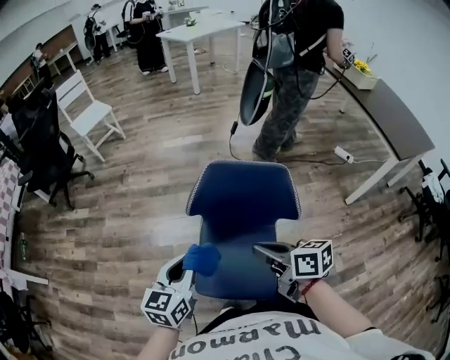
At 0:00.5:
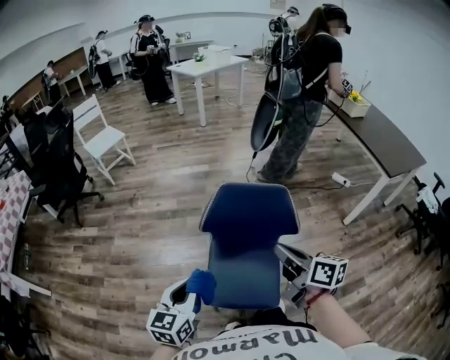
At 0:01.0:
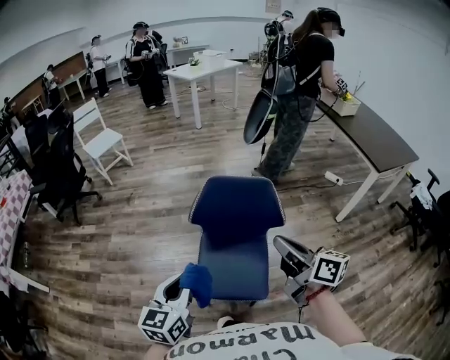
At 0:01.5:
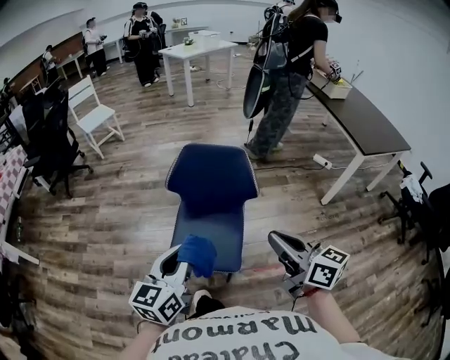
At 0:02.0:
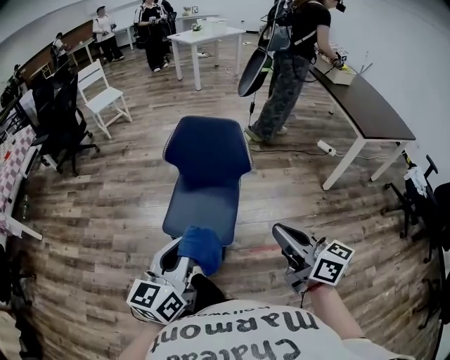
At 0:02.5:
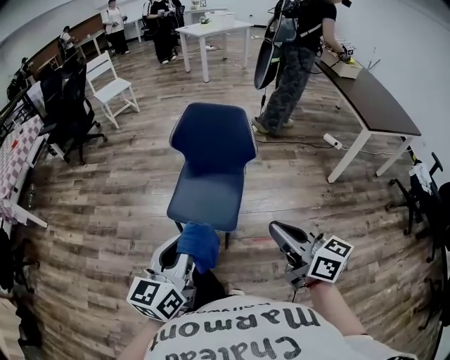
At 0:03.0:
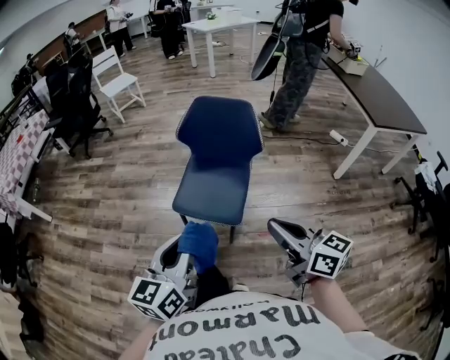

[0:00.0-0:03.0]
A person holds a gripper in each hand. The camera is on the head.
0:00.0 to 0:01.5: Both grippers travel together backward, upward and to the right, approximately 30 cm. The right gripper changes its angle by about 30 degrees.
0:01.5 to 0:03.0: The two grippers go roughly 15 cm backward.

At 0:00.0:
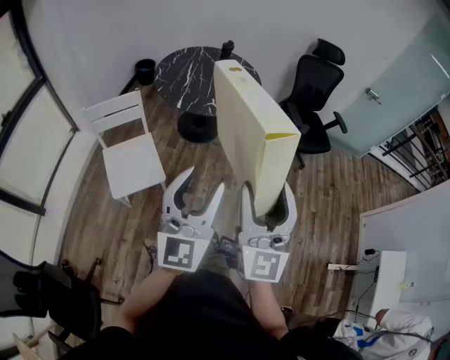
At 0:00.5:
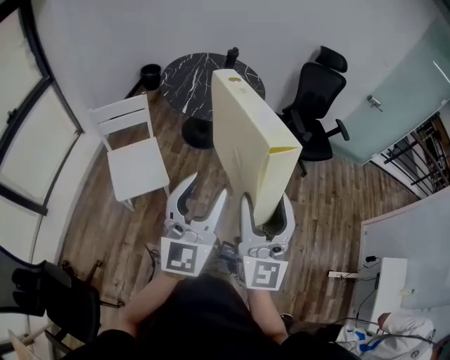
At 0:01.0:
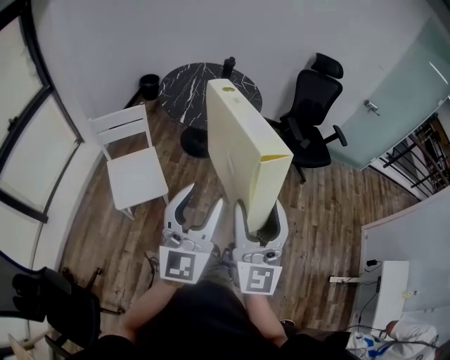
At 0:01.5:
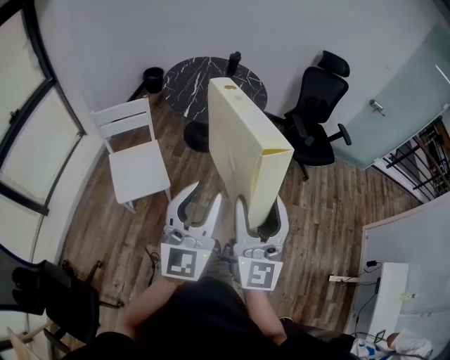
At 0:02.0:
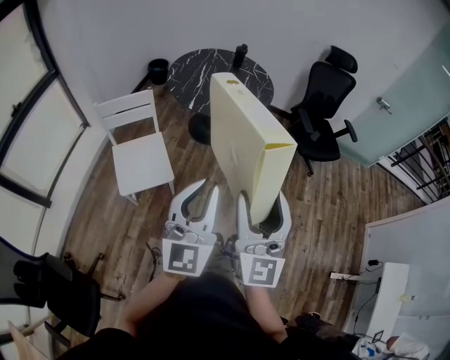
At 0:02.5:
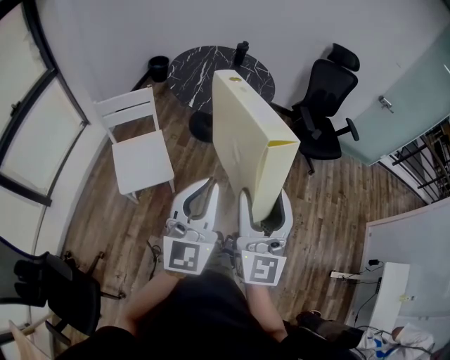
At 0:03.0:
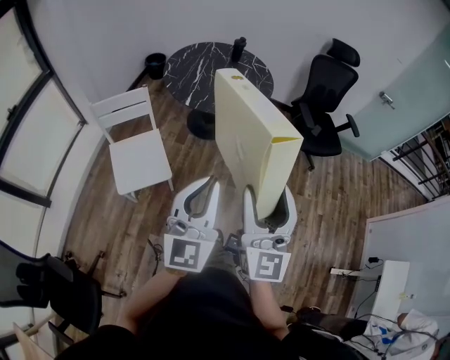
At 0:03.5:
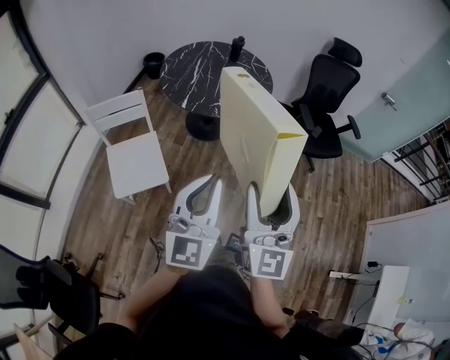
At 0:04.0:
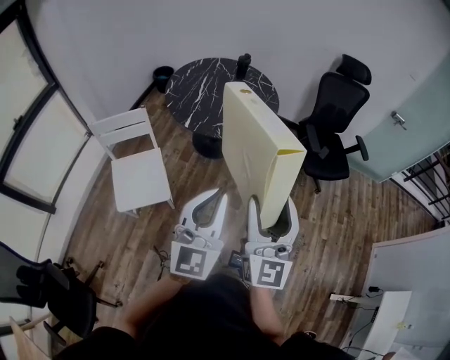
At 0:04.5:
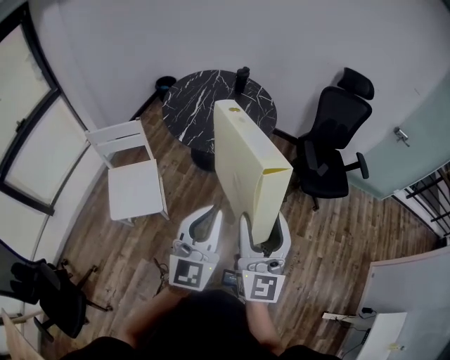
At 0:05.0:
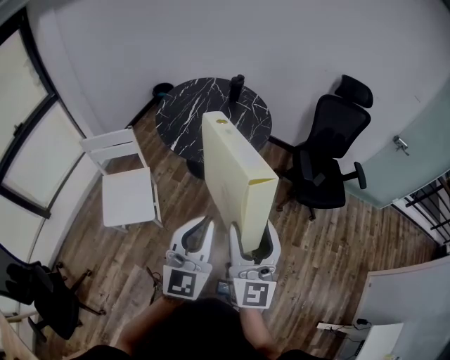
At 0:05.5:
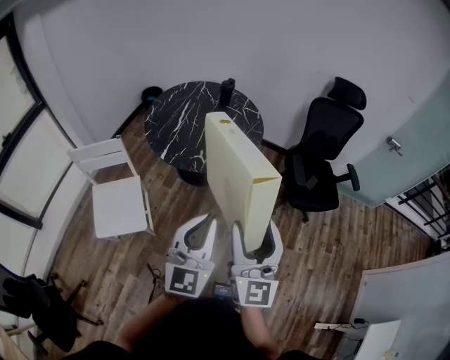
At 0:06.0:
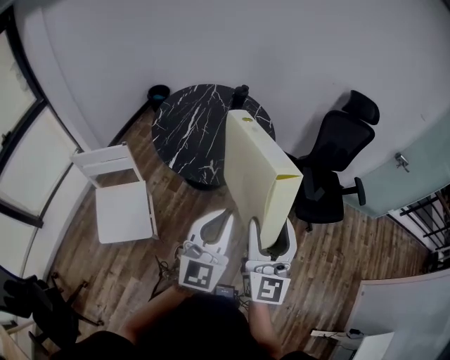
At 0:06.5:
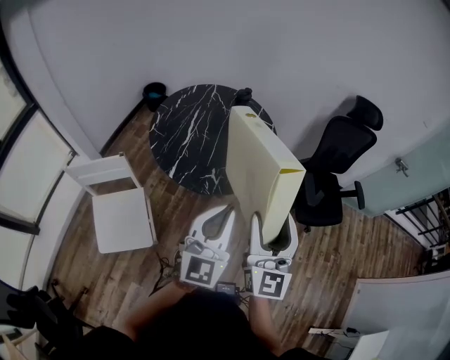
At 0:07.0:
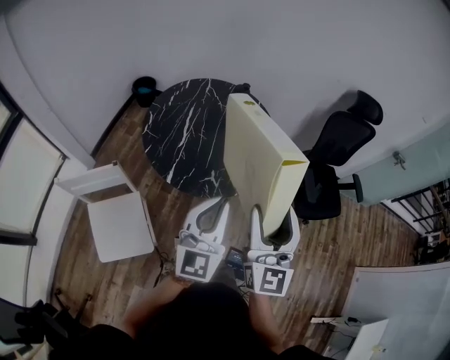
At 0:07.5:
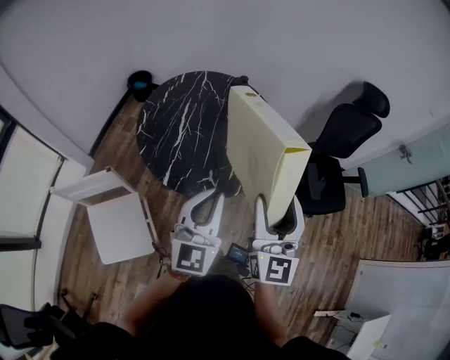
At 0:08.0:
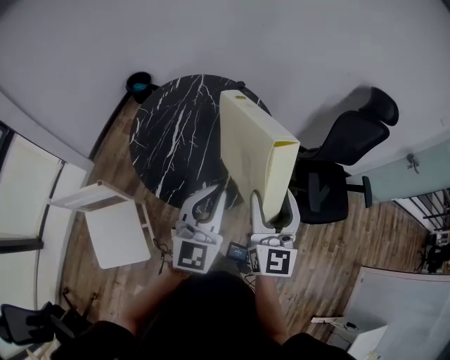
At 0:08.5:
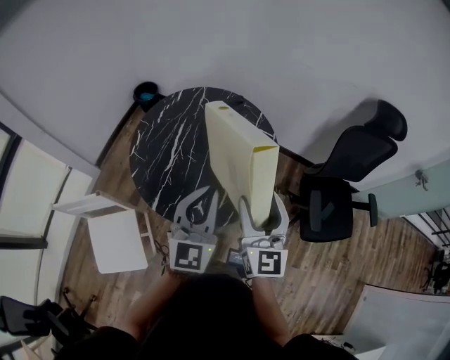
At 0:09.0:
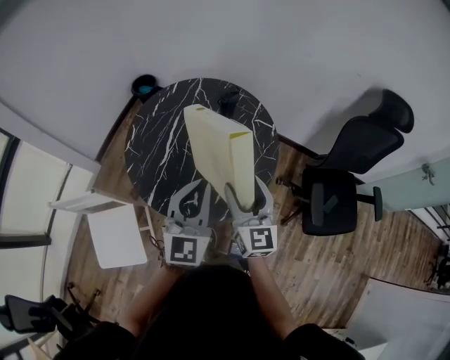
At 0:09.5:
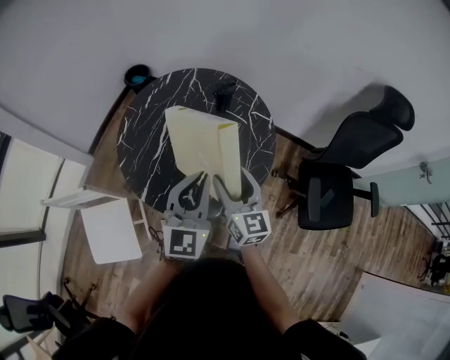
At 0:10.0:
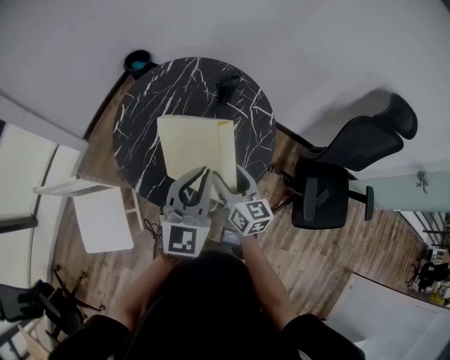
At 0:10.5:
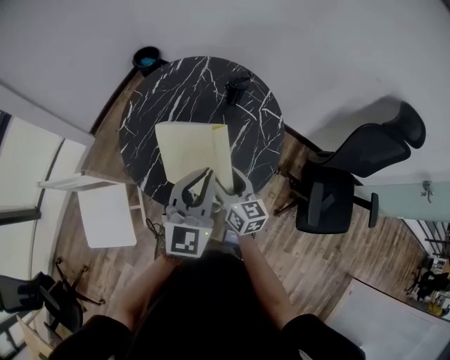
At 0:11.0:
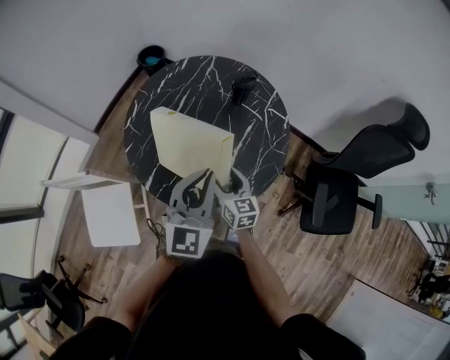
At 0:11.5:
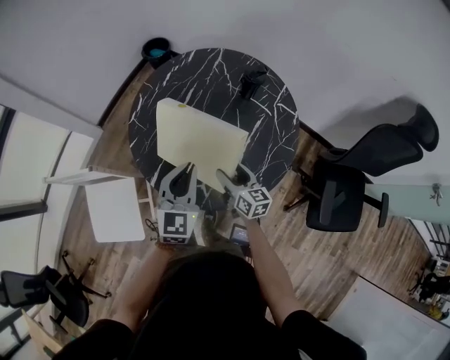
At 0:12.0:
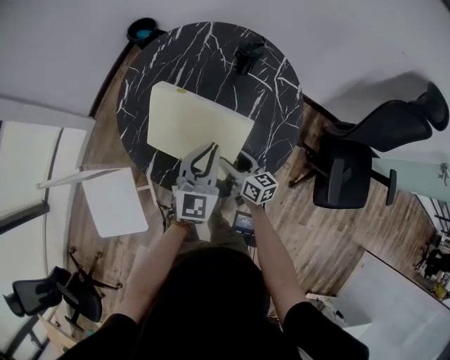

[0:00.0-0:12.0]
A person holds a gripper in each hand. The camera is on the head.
0:00.0 to 0:02.0: The left gripper closes.
0:02.0 to 0:04.0: The grippers both shift forward and to the right by roughly 20 cm.
0:04.0 to 0:06.0: The two grippers go about 20 cm forward.
0:06.0 to 0:08.0: Both grippers travel together forward, some 35 cm.
0:08.0 to 0:10.0: The left gripper moves forward, downward and to the right, about 15 cm; the right gripper shifts about 25 cm downward and forward, and swivels approximately 40 degrees.
0:10.0 to 0:12.0: Both grippers travel together downward, some 20 cm.

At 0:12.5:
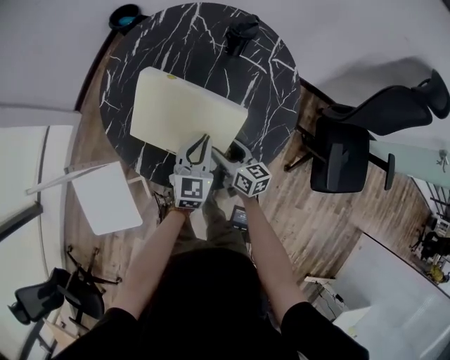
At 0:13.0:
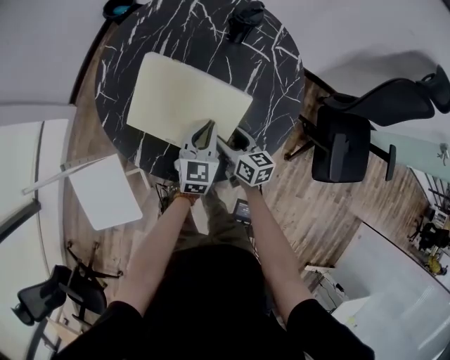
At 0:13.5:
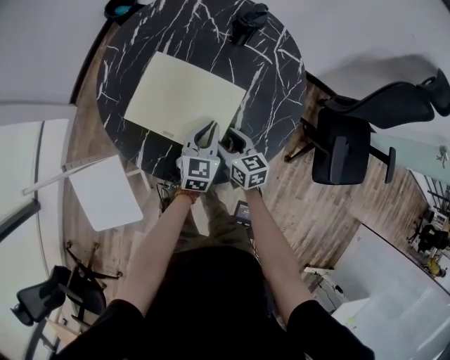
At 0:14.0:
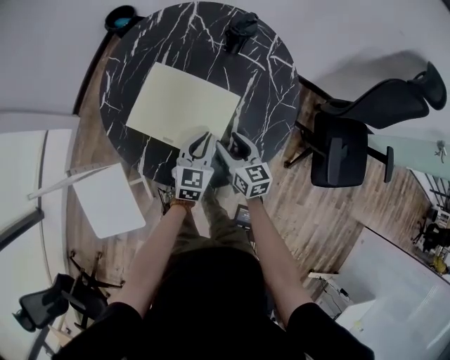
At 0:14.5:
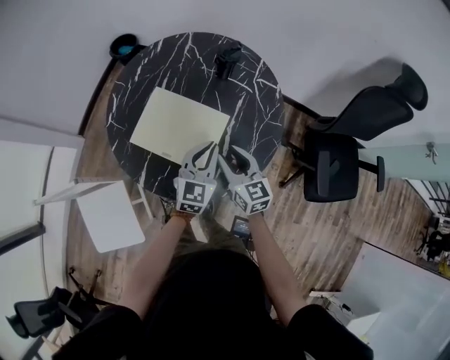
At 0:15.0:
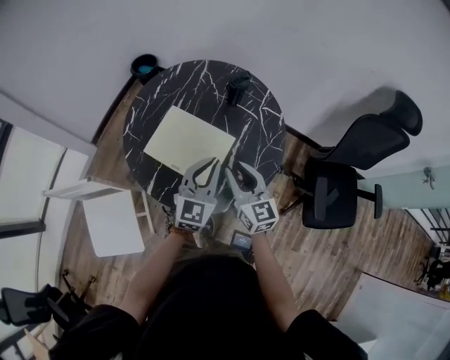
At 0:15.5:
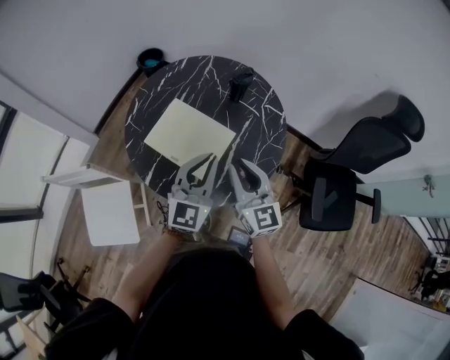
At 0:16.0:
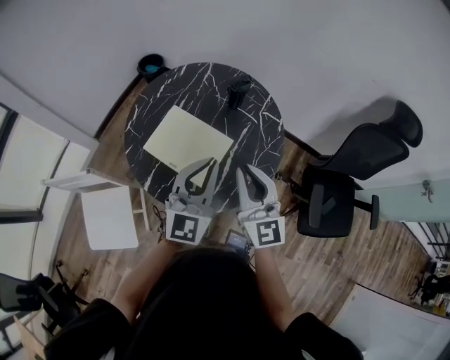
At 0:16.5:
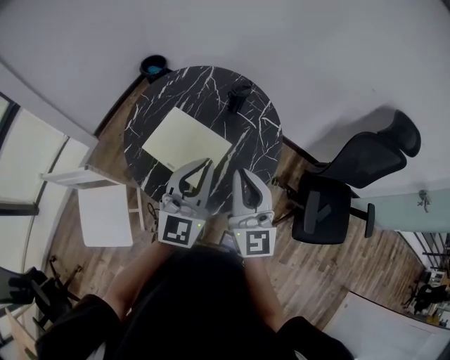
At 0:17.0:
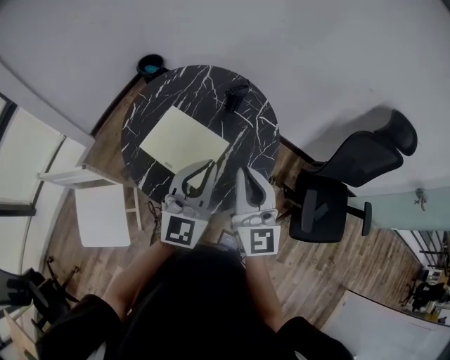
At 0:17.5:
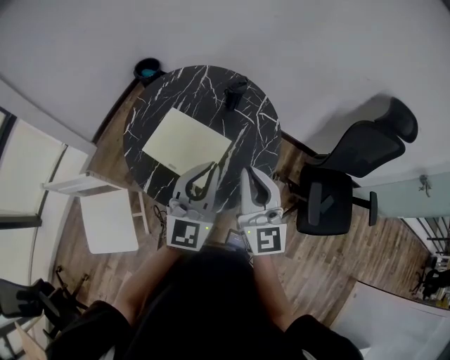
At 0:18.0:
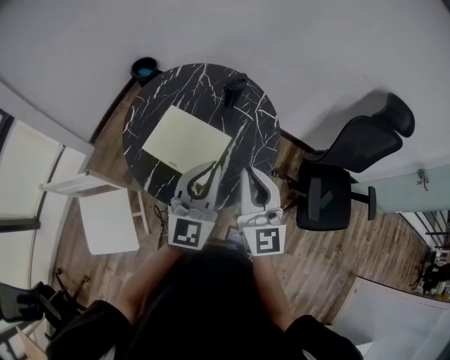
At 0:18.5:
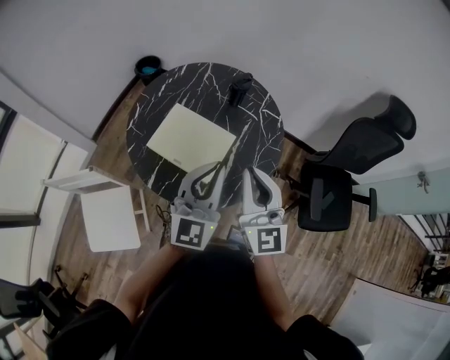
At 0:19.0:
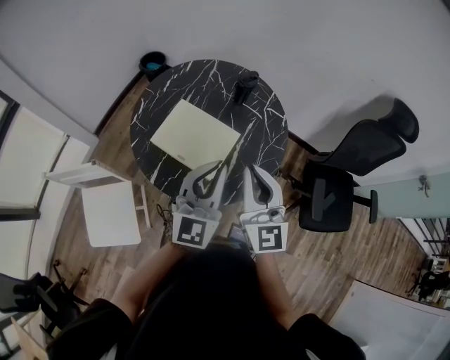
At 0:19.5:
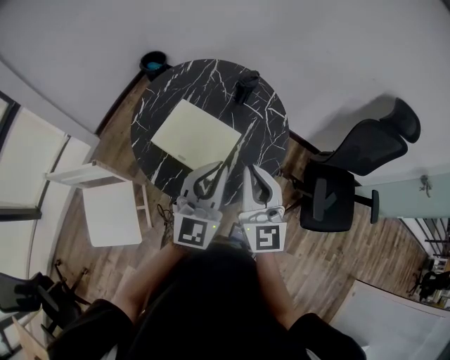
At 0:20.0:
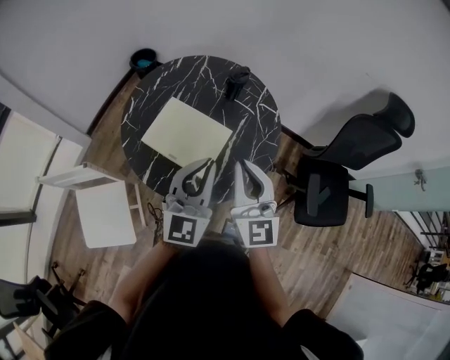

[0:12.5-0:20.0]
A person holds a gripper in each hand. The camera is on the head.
0:12.5 to 0:14.5: The right gripper moves upward, approximately 15 cm, swivels about 30 degrees, and closes up; the left gripper heads upward, covering roughly 10 cm.
0:14.5 to 0:16.5: Both grippers travel together upward, some 25 cm. The right gripper changes its angle by approximately 30 degrees, and closes its fingers; the left gripper changes its angle by some 20 degrees.
0:16.5 to 0:20.0: The grippers move only a little.

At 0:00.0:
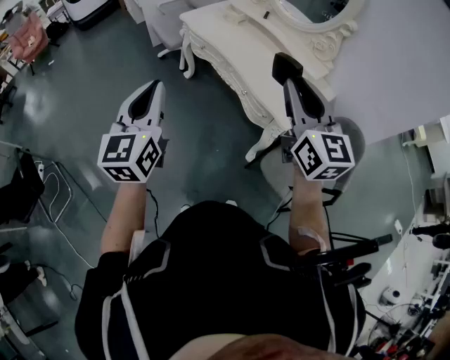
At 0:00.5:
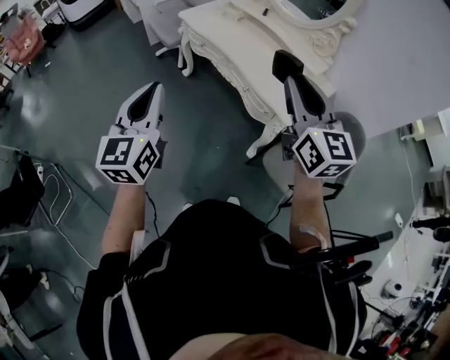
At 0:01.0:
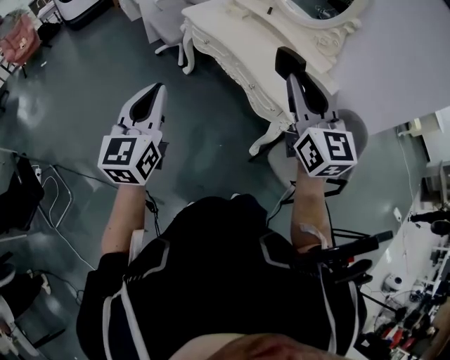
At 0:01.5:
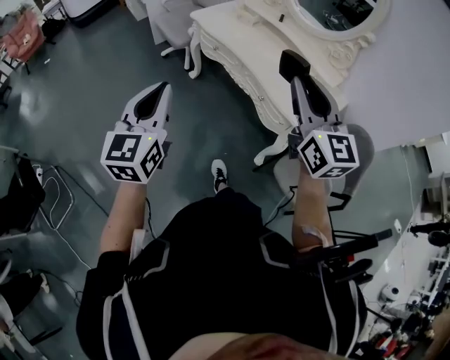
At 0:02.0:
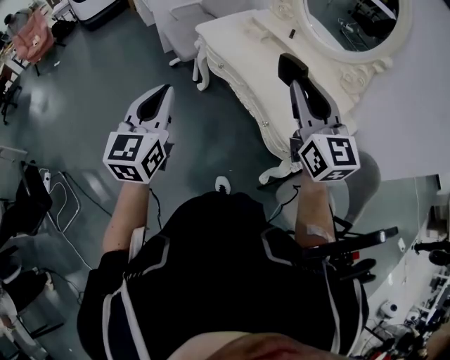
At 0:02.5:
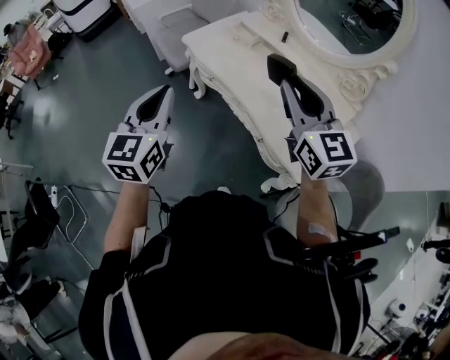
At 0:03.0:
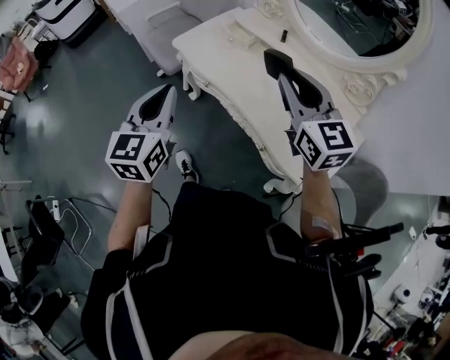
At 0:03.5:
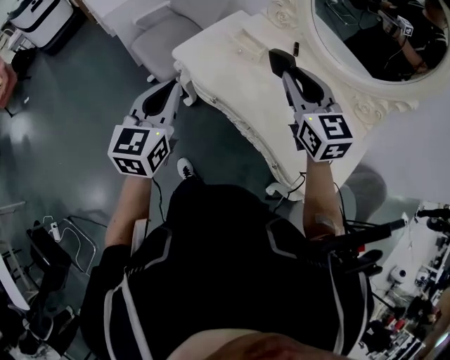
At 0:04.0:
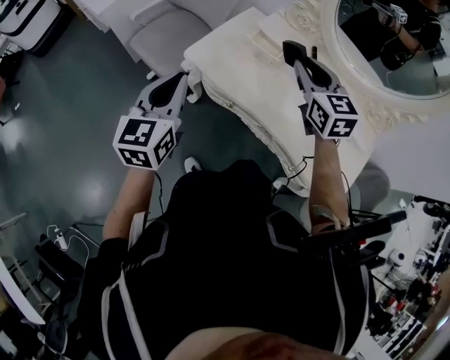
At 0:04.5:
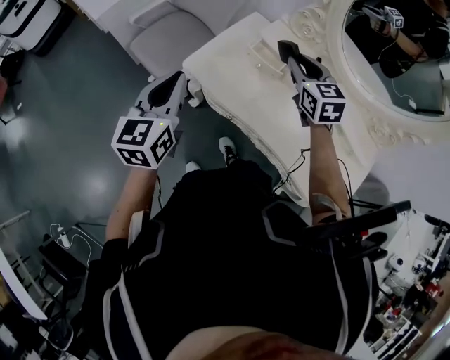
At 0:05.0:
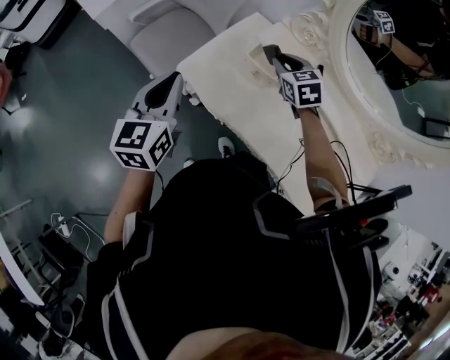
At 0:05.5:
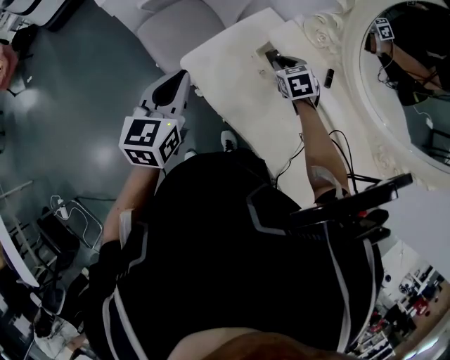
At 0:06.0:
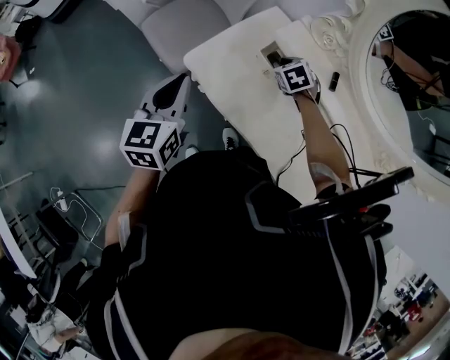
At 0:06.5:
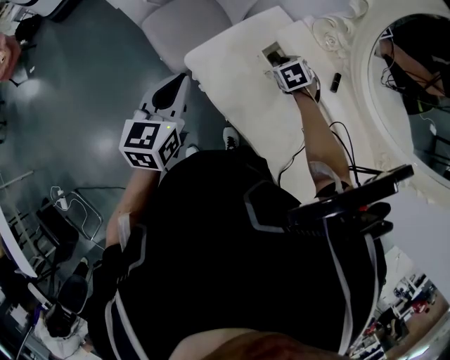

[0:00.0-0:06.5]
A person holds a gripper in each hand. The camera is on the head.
0:00.0 to 0:02.0: Both grippers move forward, approximately 20 cm.
0:02.0 to 0:04.5: The pair of grippers is taken forward, roughly 50 cm. The right gripper changes its angle by approximately 30 degrees.
0:04.5 to 0:06.5: The left gripper is displaced downward by some 5 cm. The right gripper goes some 25 cm downward and forward, and tilts its fingers approximately 30 degrees downward.
